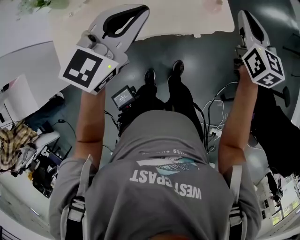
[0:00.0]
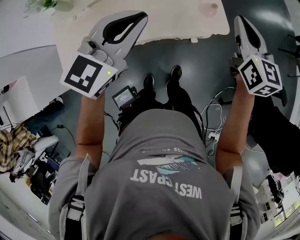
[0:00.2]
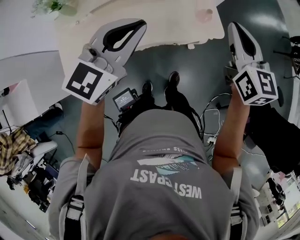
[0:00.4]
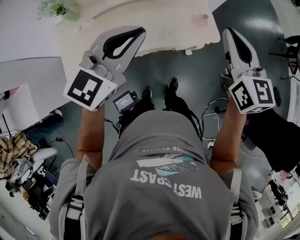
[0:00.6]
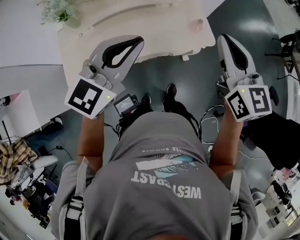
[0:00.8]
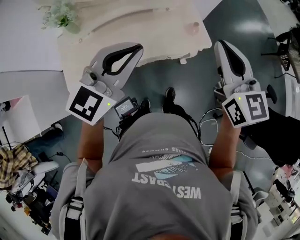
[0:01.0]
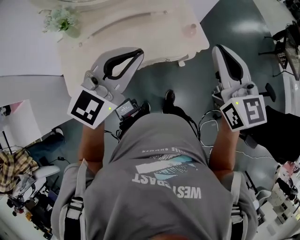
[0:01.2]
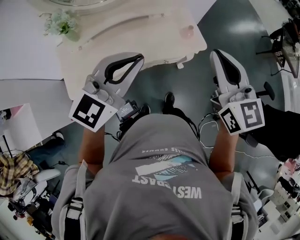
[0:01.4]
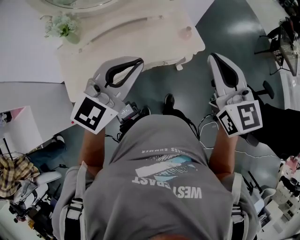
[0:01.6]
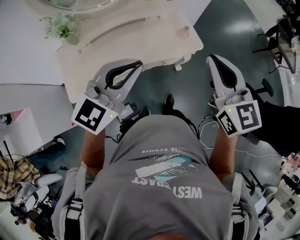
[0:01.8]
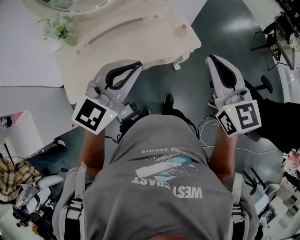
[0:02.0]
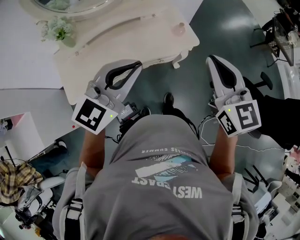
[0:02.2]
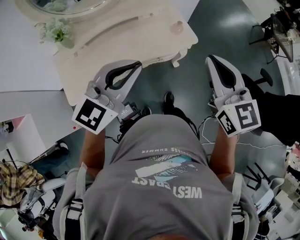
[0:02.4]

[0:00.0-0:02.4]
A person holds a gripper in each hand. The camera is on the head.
0:00.0 to 0:01.2: The right gripper goes roughly 30 cm backward and upward, while the left gripper goes about 20 cm backward and upward.
0:01.2 to 0:02.4: Both grippers travel together backward, roughly 5 cm.

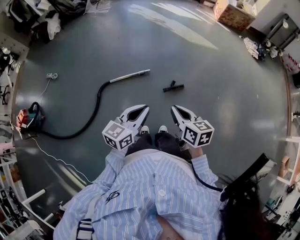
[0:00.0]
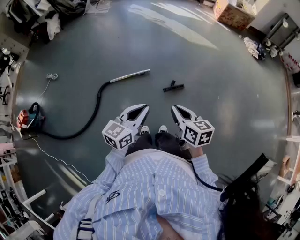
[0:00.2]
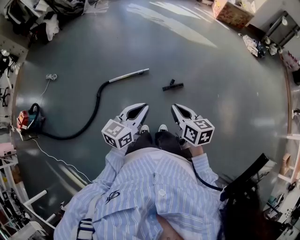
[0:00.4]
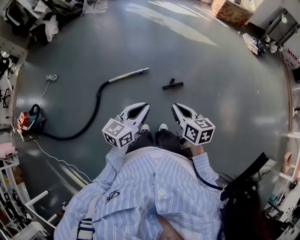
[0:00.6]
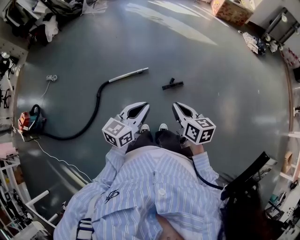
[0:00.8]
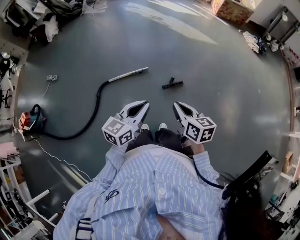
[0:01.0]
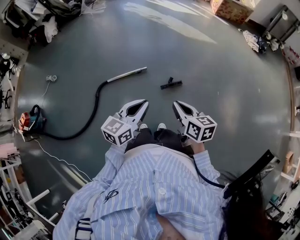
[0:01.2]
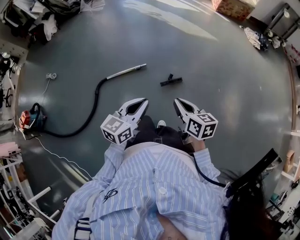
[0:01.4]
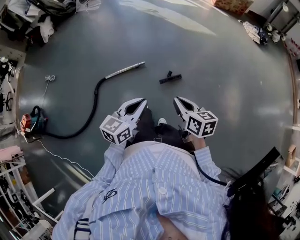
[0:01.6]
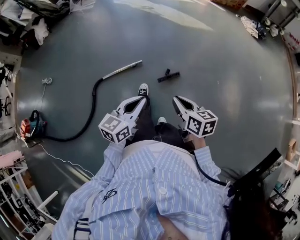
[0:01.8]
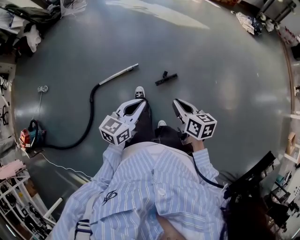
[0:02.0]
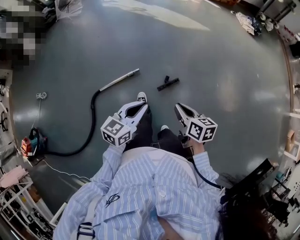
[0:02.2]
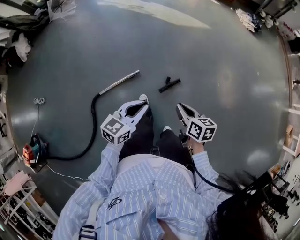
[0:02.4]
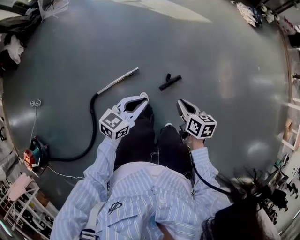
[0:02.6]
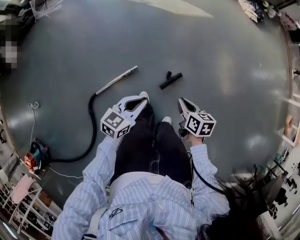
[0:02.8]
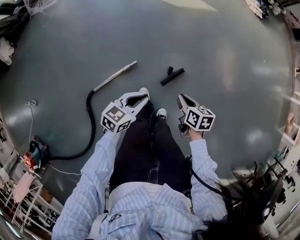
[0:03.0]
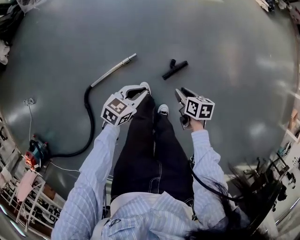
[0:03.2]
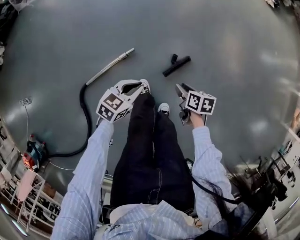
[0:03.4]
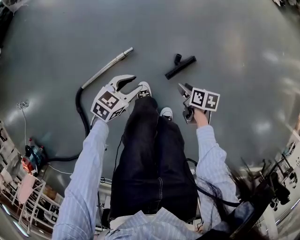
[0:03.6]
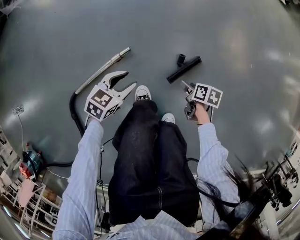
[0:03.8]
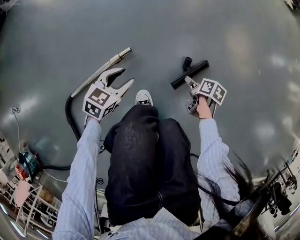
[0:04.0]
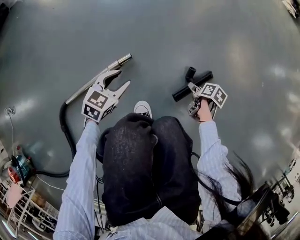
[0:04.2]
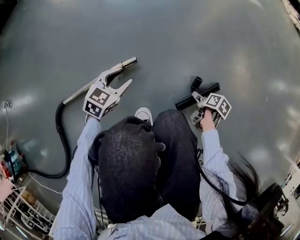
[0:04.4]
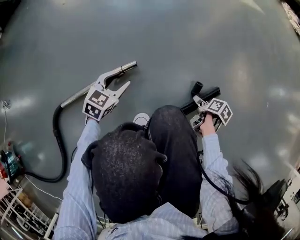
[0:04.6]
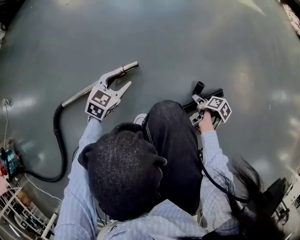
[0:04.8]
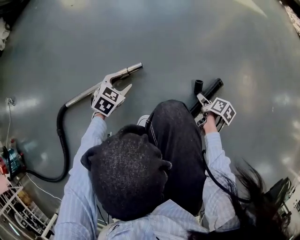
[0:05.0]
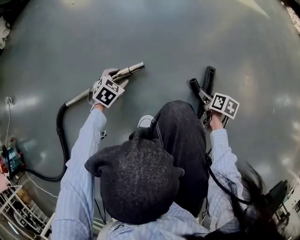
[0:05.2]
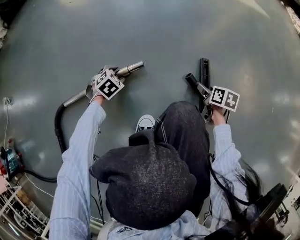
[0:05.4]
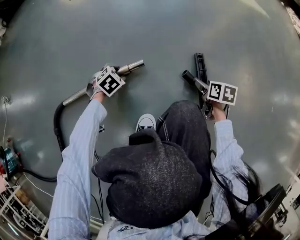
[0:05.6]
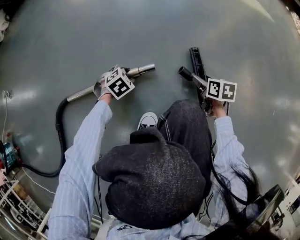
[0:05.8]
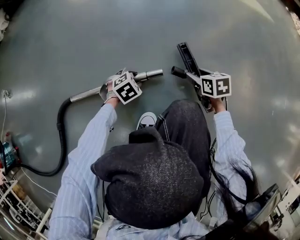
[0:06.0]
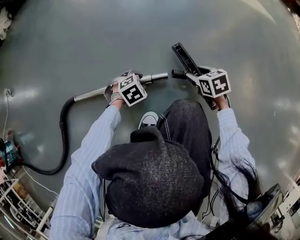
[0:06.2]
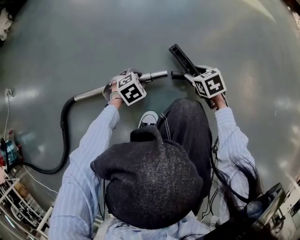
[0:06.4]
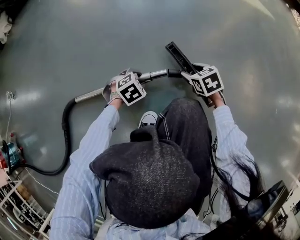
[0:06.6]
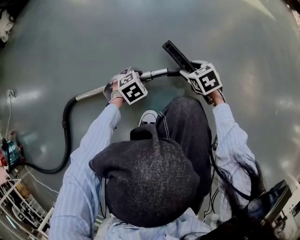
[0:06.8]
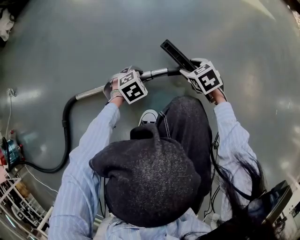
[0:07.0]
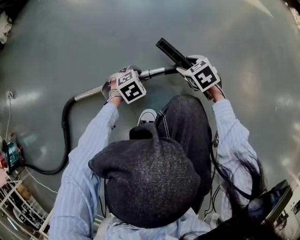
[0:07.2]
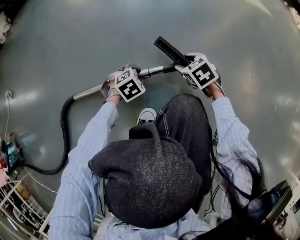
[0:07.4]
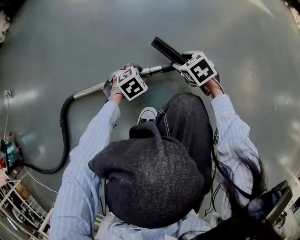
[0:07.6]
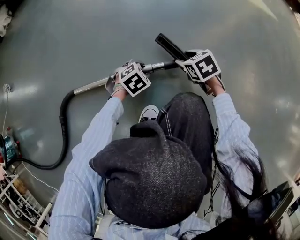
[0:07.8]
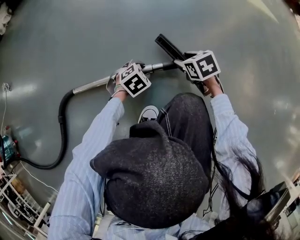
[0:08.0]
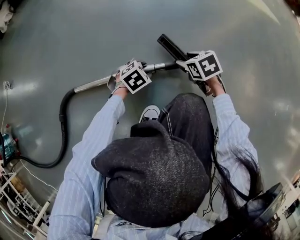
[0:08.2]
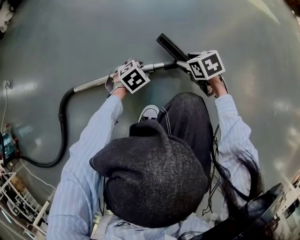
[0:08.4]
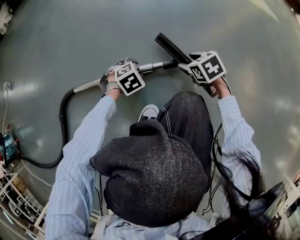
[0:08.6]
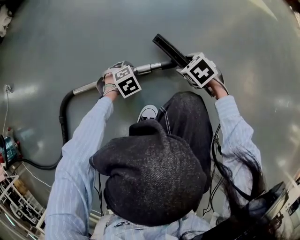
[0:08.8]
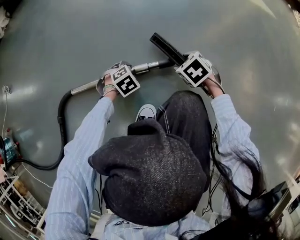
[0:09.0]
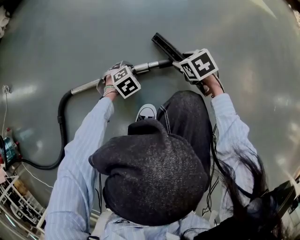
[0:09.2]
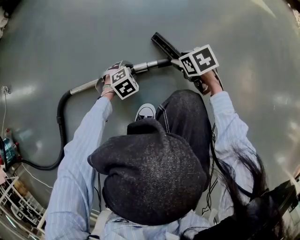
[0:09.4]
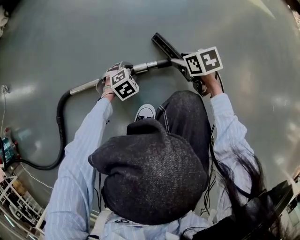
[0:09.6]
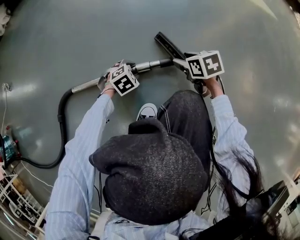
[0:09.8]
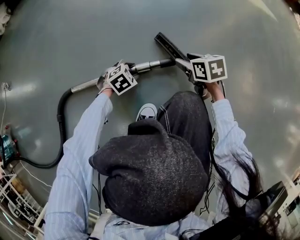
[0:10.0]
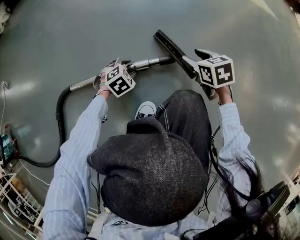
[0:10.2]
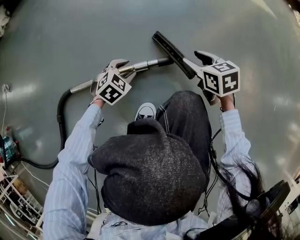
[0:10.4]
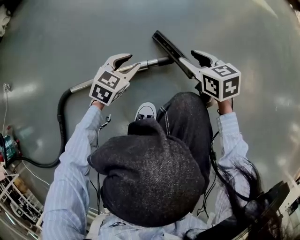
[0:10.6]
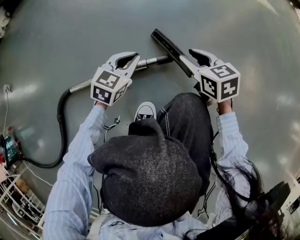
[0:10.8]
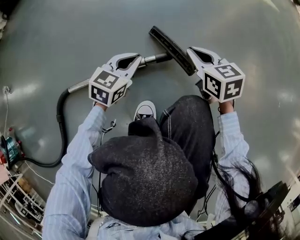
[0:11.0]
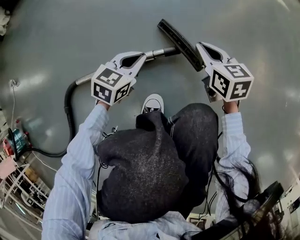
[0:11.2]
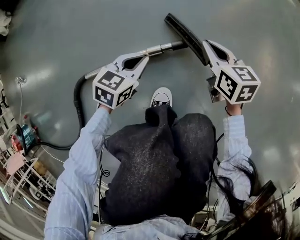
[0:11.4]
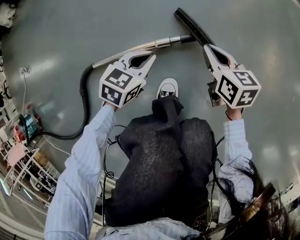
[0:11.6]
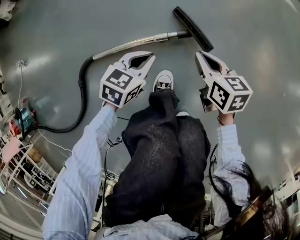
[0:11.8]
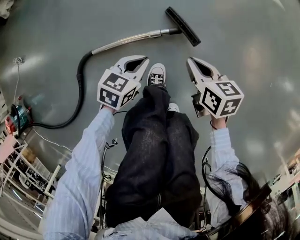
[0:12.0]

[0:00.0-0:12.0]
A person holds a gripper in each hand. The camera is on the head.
0:00.0 to 0:01.6: Both grippers move to the right, some 10 cm.
0:01.6 to 0:03.0: The two grippers go approximately 40 cm forward, downward and to the left. The right gripper rotates approximately 30 degrees. The left gripper changes its angle by approximately 30 degrees.
0:03.0 to 0:04.4: Both grippers move downward, roughly 60 cm. The left gripper turns by approximately 20 degrees, and opens up. Meanwhile the right gripper turns by approximately 40 degrees, and opens up.
0:04.4 to 0:06.0: The right gripper changes place by some 20 cm, and rotates around the line of its fingers by approximately 60 degrees, counterclockwise from behind, while the left gripper travels downward by roughly 15 cm, and changes its angle by roughly 30 degrees.
0:06.0 to 0:07.6: The right gripper changes place by approximately 5 cm, and changes its angle by roughly 30 degrees.
0:07.6 to 0:09.0: The left gripper ends up approximately 5 cm from where it was.
0:09.0 to 0:10.4: The two grippers go approximately 10 cm upward. The right gripper changes its angle by some 30 degrees.
0:10.4 to 0:12.0: The right gripper travels upward and backward by roughly 25 cm, swivels some 20 degrees, and closes; the left gripper is displaced upward by some 25 cm, turns by approximately 30 degrees, and closes up.

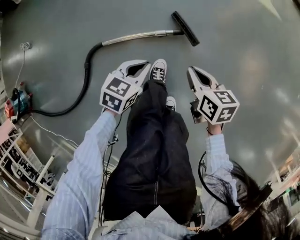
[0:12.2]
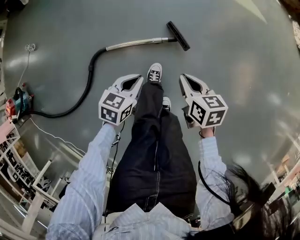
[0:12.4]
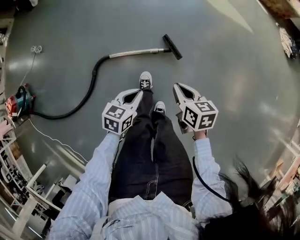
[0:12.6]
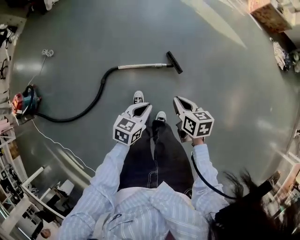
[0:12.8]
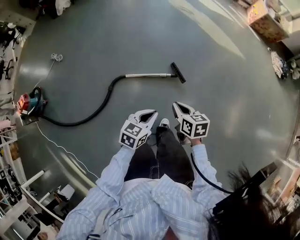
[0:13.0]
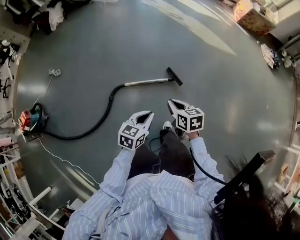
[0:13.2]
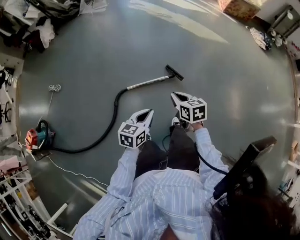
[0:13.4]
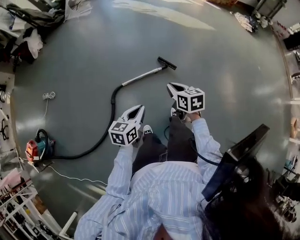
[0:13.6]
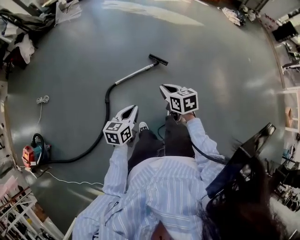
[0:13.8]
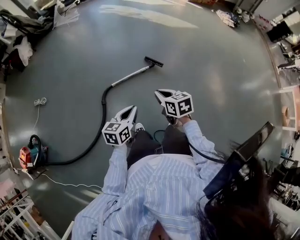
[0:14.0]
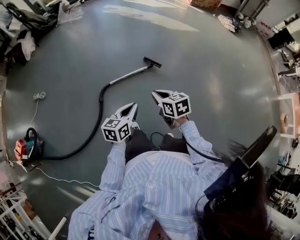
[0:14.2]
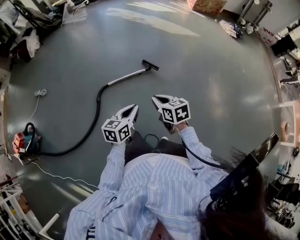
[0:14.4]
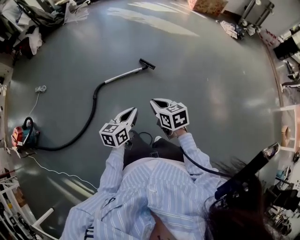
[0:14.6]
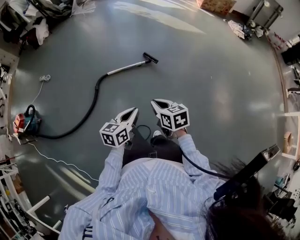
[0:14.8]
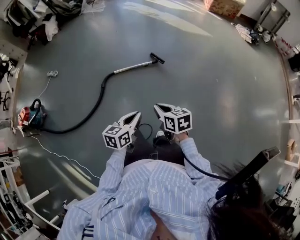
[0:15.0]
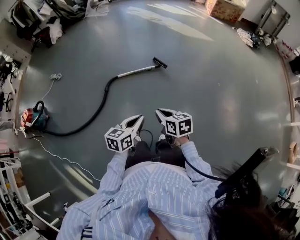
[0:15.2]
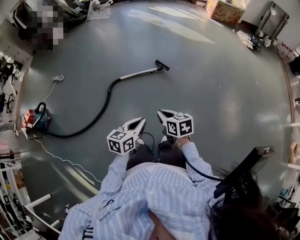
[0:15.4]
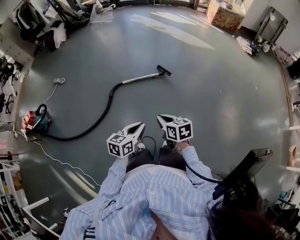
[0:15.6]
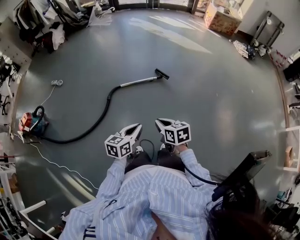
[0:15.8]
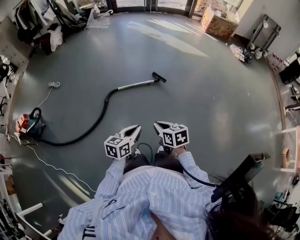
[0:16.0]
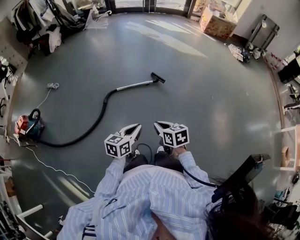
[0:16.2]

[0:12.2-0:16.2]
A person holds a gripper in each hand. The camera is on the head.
0:12.2 to 0:13.6: The two grippers go roughly 50 cm upward, backward and to the left. The left gripper rotates about 20 degrees.
0:13.6 to 0:14.8: The right gripper shifts some 30 cm backward and to the right. Meanwhile the left gripper shifts roughly 30 cm to the right and backward.
0:14.8 to 0:16.2: The two grippers go approximately 15 cm to the left and backward.

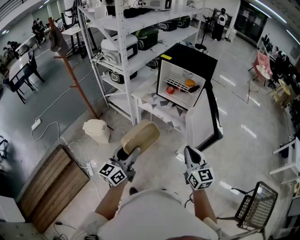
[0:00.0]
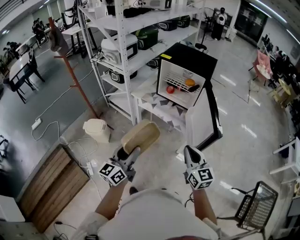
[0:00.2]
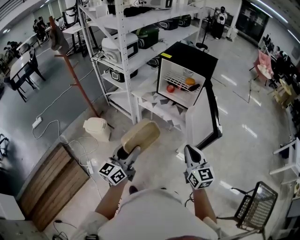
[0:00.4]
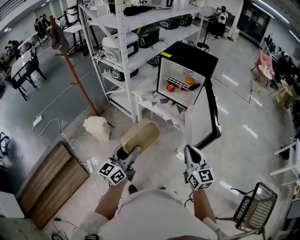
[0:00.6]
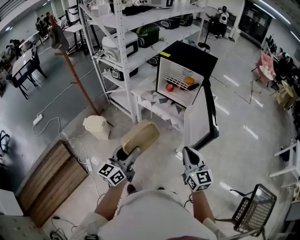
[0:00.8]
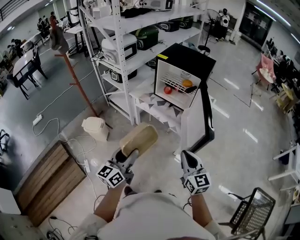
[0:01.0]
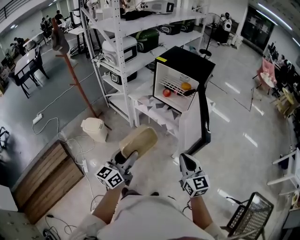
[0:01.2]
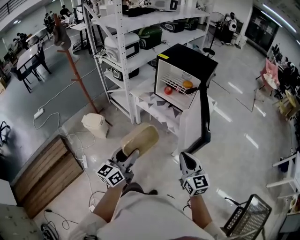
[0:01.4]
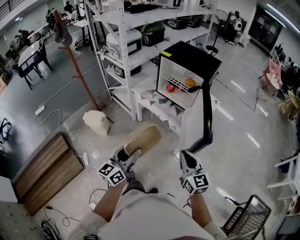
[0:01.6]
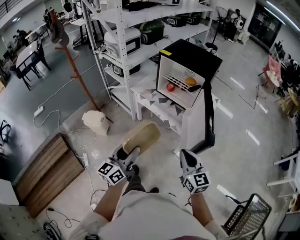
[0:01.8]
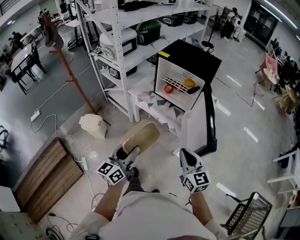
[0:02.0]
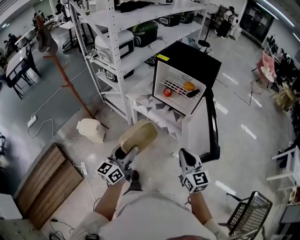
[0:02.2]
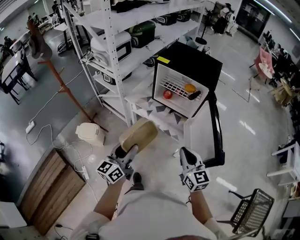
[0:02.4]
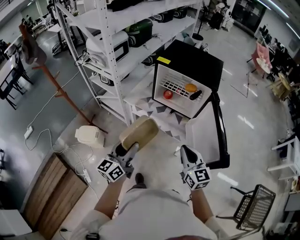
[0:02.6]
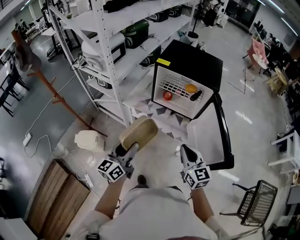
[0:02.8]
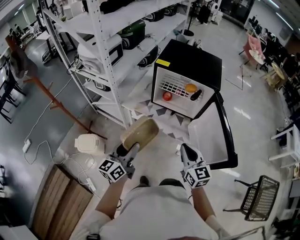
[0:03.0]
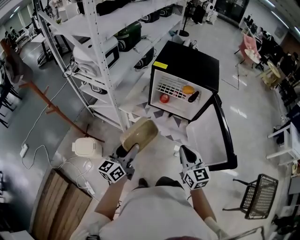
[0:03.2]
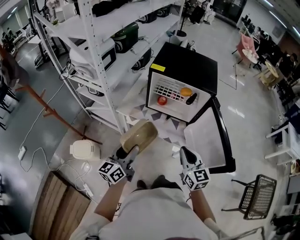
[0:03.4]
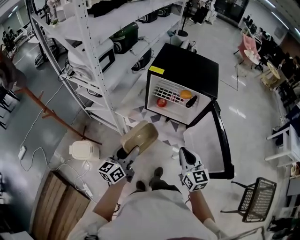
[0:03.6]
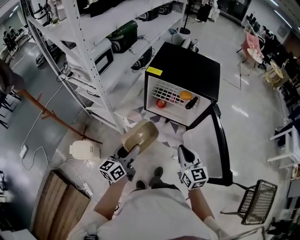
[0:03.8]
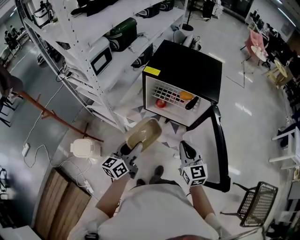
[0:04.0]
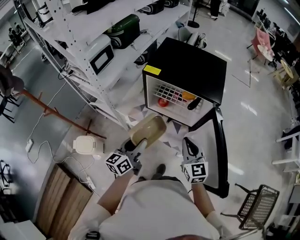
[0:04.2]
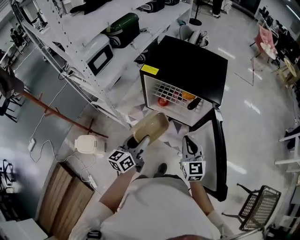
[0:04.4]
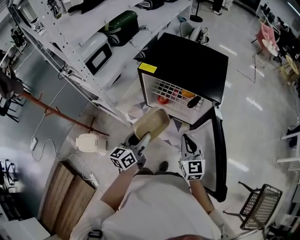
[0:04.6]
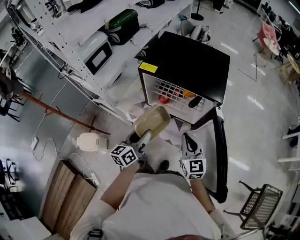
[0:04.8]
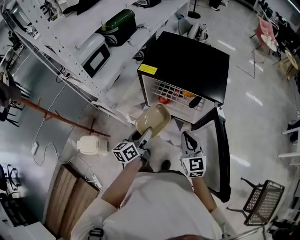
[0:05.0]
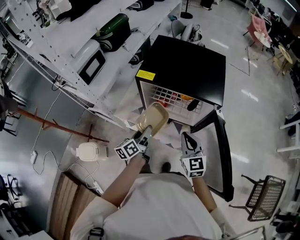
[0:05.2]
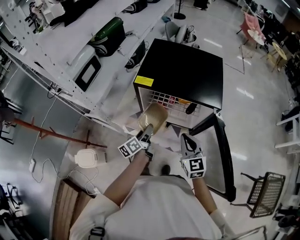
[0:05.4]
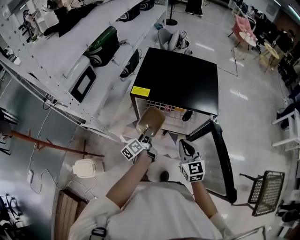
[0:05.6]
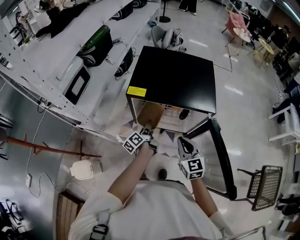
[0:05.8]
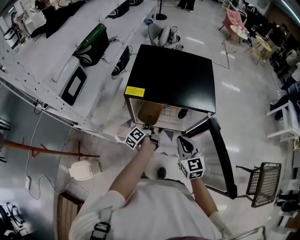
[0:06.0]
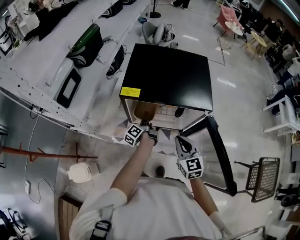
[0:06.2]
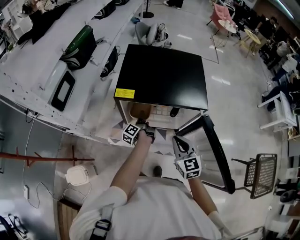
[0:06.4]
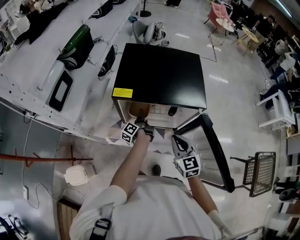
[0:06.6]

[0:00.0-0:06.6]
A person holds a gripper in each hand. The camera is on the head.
0:00.0 to 0:01.6: Both grippers move to the right, approximately 10 cm.
0:01.6 to 0:03.2: The grippers both shift forward and to the left by approximately 30 cm.
0:03.2 to 0:05.0: The right gripper heads forward, covering about 20 cm. The left gripper goes some 25 cm forward and to the right.
0:05.0 to 0:06.6: The left gripper goes approximately 25 cm forward and downward, and turns by some 40 degrees.
